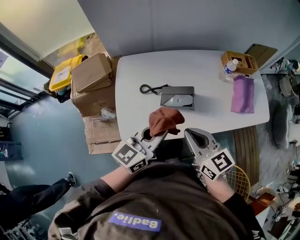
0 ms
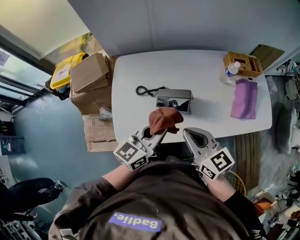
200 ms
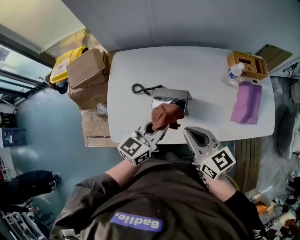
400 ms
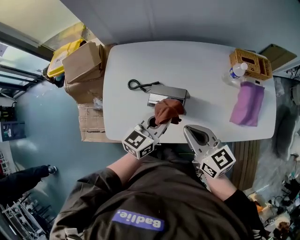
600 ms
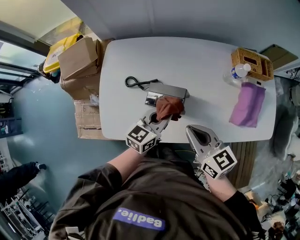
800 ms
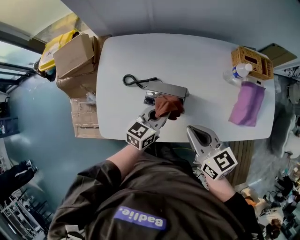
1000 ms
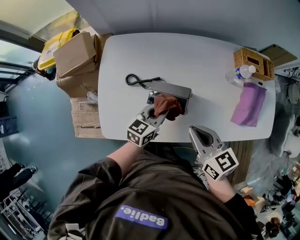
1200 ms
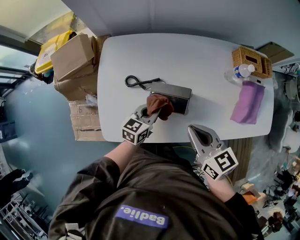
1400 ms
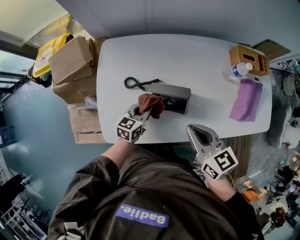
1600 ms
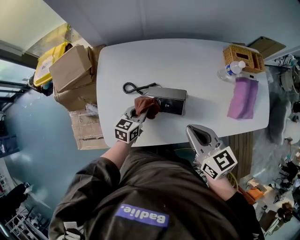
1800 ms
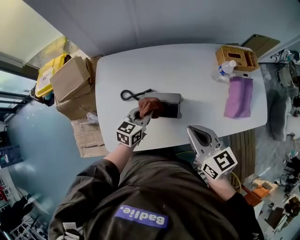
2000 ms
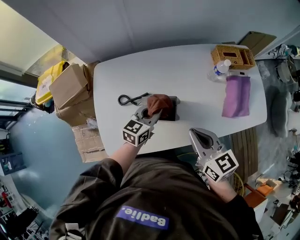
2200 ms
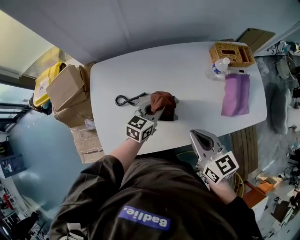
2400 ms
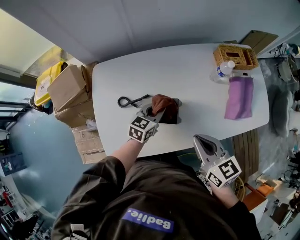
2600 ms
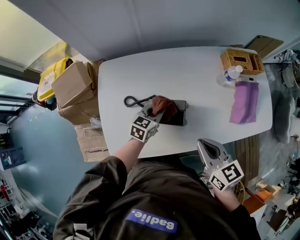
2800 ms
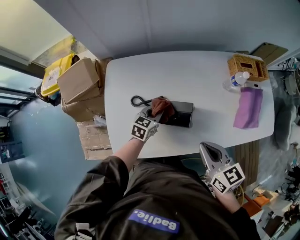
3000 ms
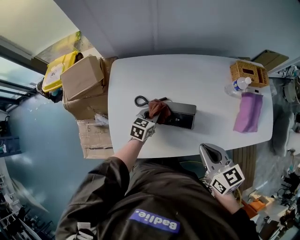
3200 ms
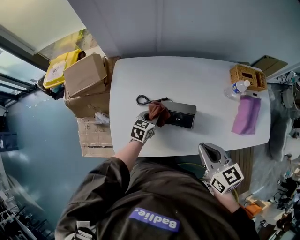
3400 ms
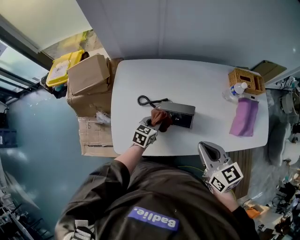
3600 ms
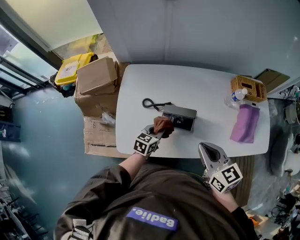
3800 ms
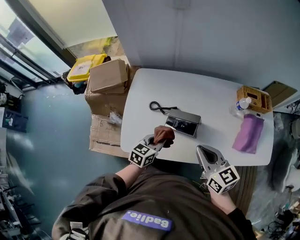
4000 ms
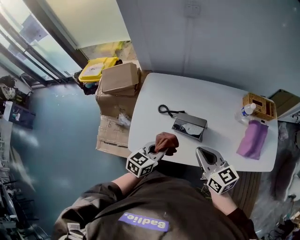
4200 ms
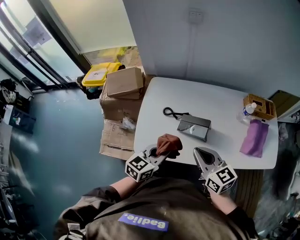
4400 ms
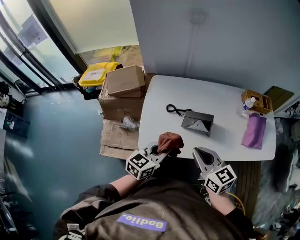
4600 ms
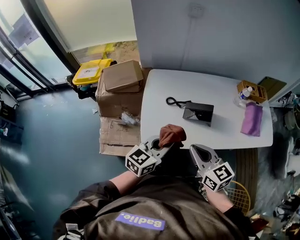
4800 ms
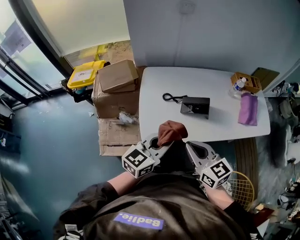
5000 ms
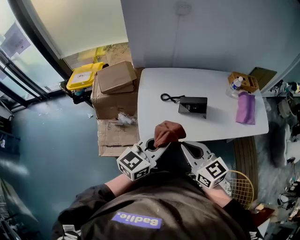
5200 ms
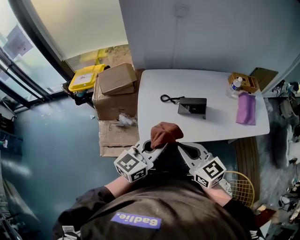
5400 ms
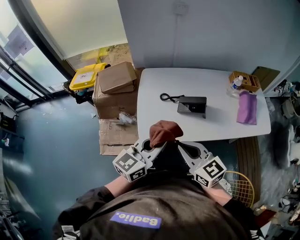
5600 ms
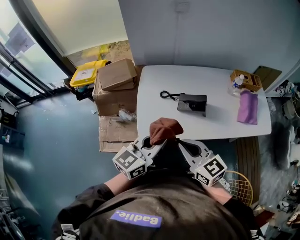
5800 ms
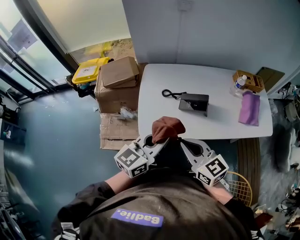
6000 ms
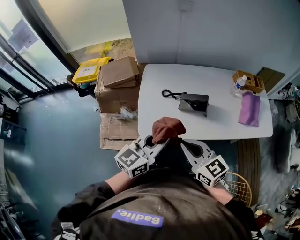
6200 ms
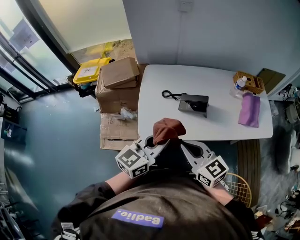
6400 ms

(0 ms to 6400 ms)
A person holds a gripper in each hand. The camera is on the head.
0 ms - 1600 ms: The left gripper is displaced downward and forward by about 30 cm, and swivels about 30 degrees, while the right gripper moves forward, downward and to the right, approximately 15 cm.
1600 ms - 3200 ms: The left gripper goes to the right and returns, about 10 cm each way.
3200 ms - 4800 ms: The right gripper heads to the left and backward, covering some 20 cm, while the left gripper travels upward and backward by approximately 35 cm, and changes its angle by some 30 degrees.
4800 ms - 6400 ms: The left gripper shifts approximately 5 cm upward.

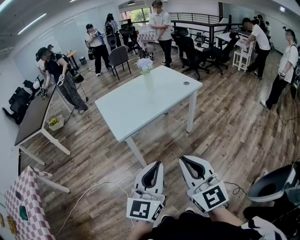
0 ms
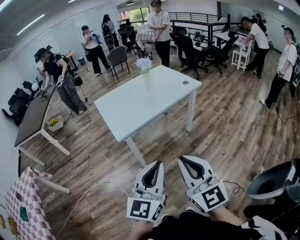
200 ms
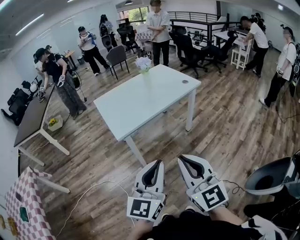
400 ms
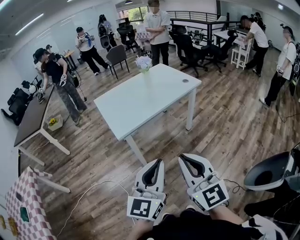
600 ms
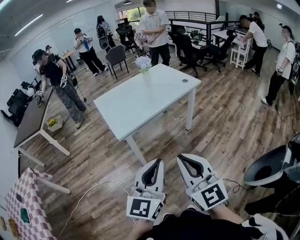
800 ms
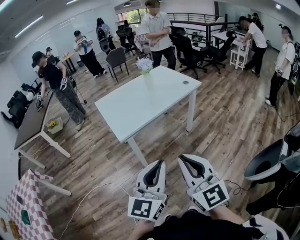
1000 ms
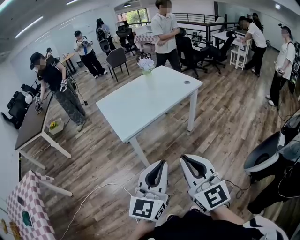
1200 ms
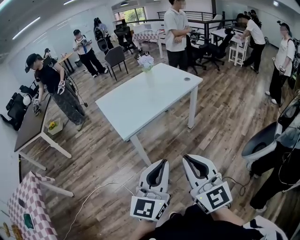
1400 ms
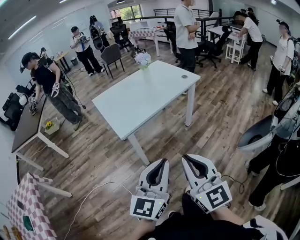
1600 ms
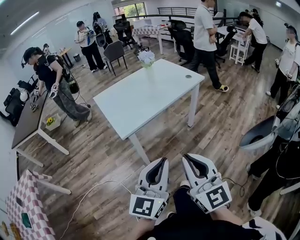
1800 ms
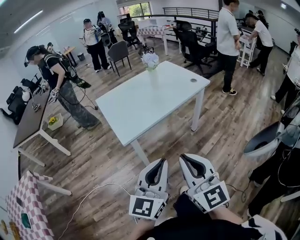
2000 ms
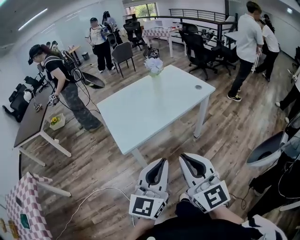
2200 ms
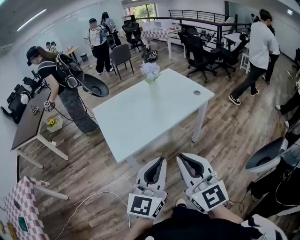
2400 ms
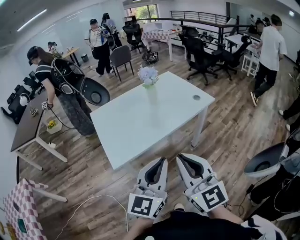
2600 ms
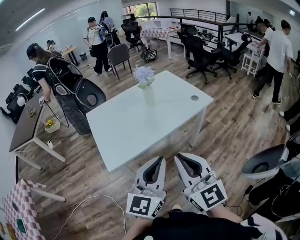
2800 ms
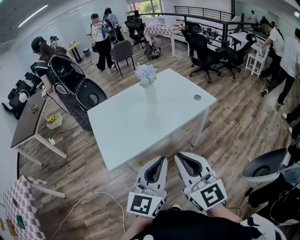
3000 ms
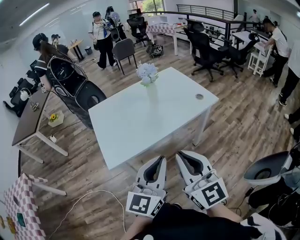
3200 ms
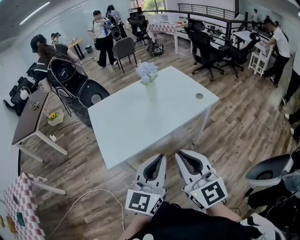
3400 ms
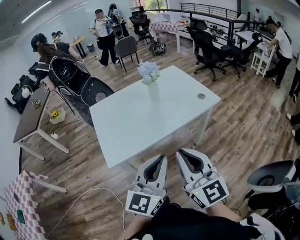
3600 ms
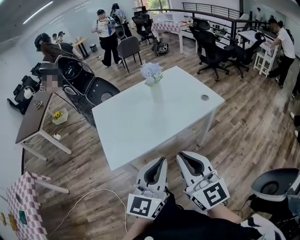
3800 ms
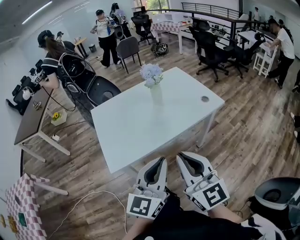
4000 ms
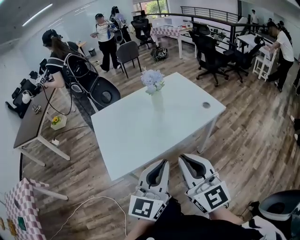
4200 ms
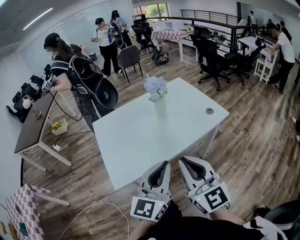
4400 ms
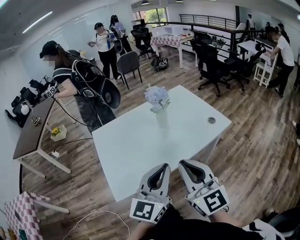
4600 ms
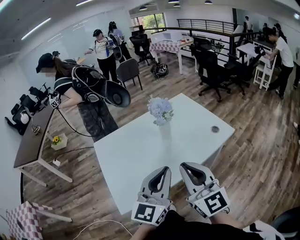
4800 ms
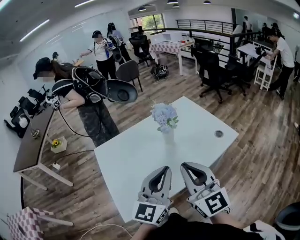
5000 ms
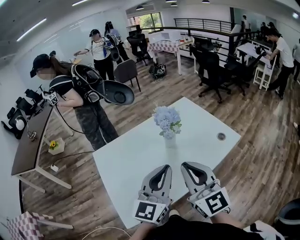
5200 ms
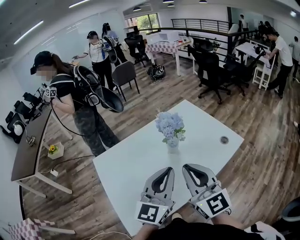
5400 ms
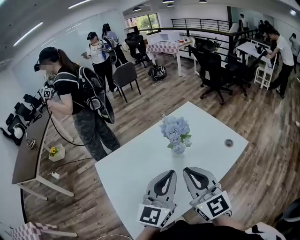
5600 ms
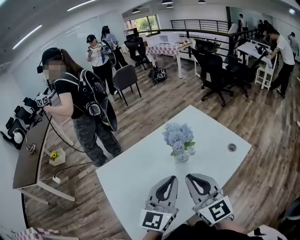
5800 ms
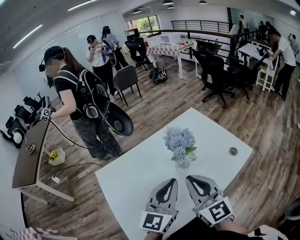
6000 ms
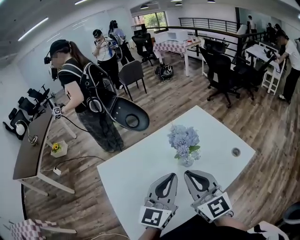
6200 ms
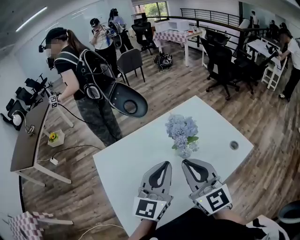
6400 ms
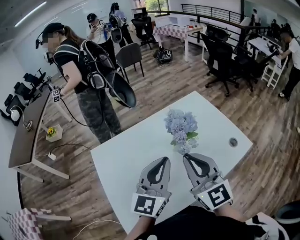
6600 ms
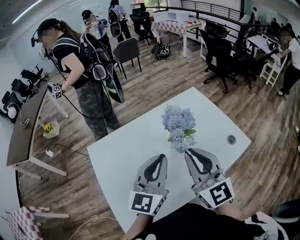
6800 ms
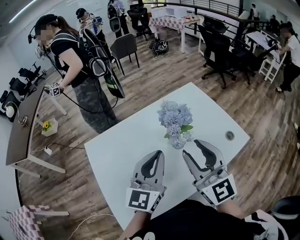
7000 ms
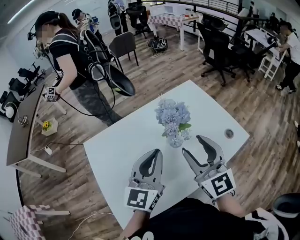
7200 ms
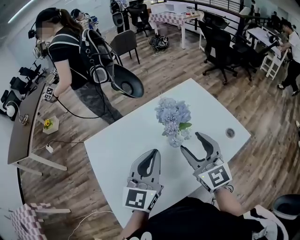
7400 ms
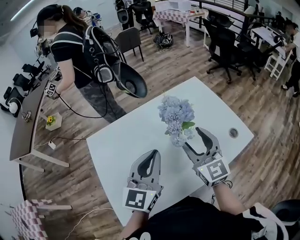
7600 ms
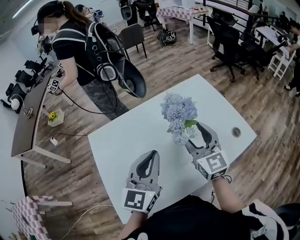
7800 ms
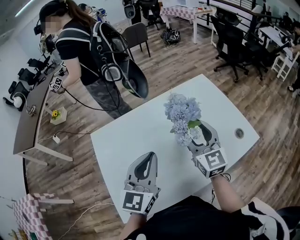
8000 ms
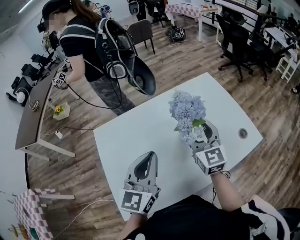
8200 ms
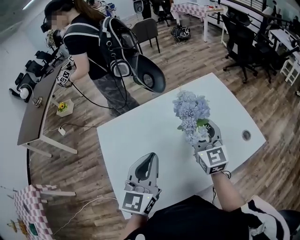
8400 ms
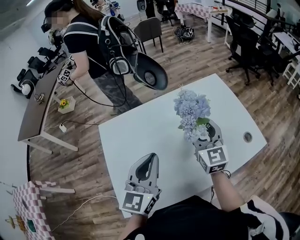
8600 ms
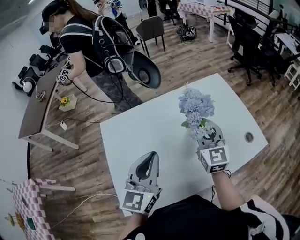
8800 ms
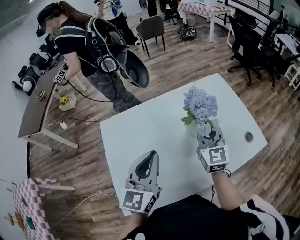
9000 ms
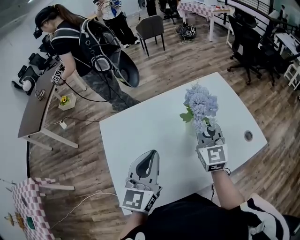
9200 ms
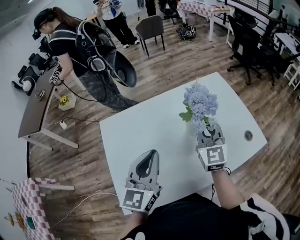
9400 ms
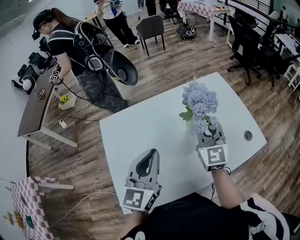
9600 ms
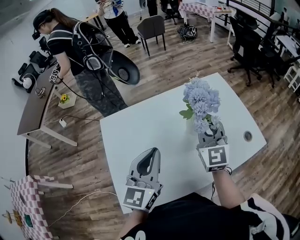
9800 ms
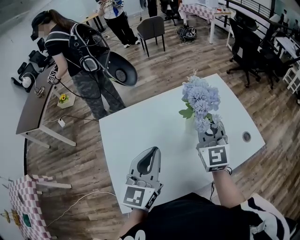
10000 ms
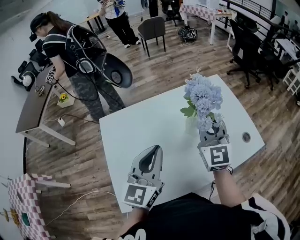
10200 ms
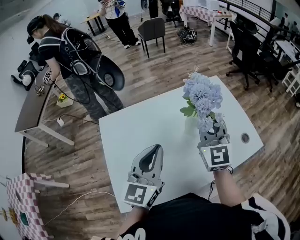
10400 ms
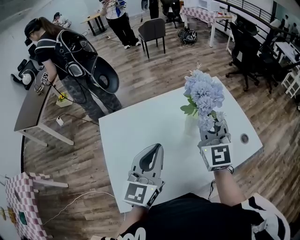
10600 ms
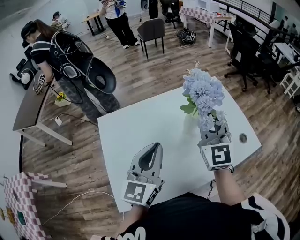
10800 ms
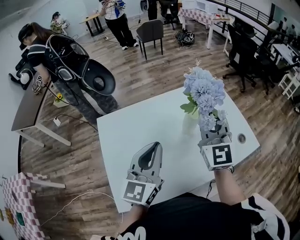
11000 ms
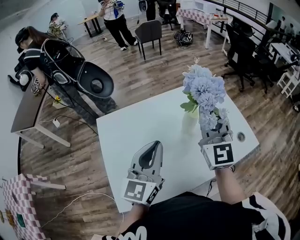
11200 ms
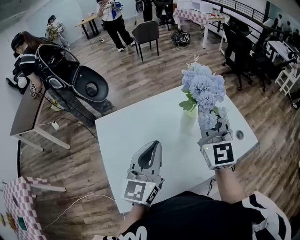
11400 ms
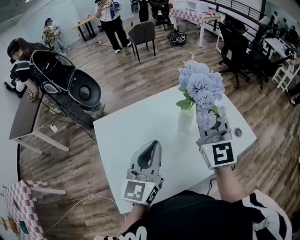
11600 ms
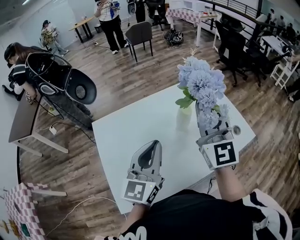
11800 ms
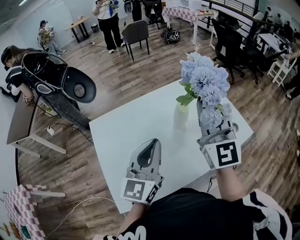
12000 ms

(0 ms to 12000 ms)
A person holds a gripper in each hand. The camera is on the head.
0 ms - 1600 ms: The grippers move only a little.
1600 ms - 3000 ms: Both grippers move forward, approximately 30 cm.
3000 ms - 4400 ms: Both grippers travel together forward, about 10 cm.
4400 ms - 6000 ms: The grippers both shift forward by some 25 cm.
6000 ms - 7600 ms: The right gripper moves forward, approximately 10 cm, and opens.
7600 ms - 9000 ms: The right gripper moves forward, approximately 5 cm, and closes up; the left gripper moves to the left, about 5 cm.
9000 ms - 10400 ms: The right gripper travels upward by approximately 5 cm.
10400 ms - 12000 ms: The right gripper moves upward, about 10 cm.

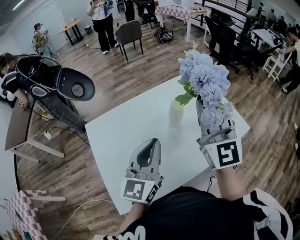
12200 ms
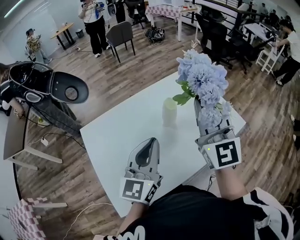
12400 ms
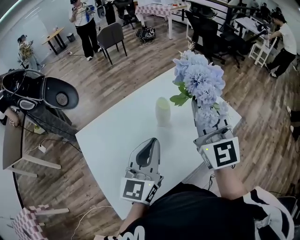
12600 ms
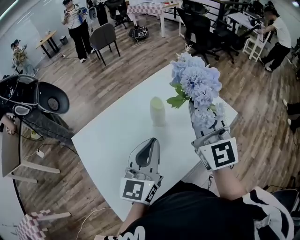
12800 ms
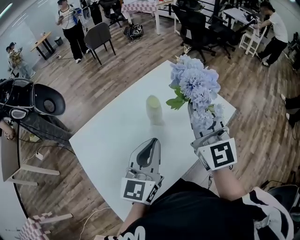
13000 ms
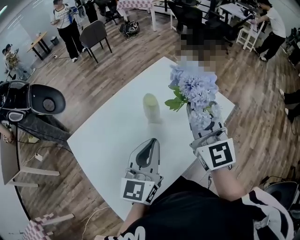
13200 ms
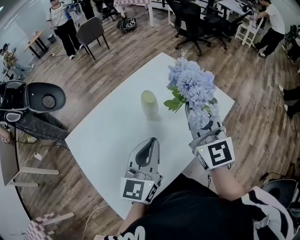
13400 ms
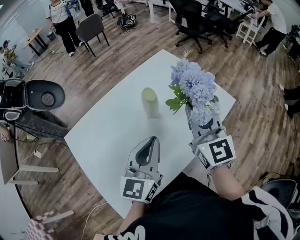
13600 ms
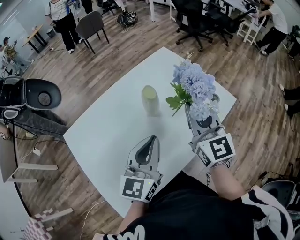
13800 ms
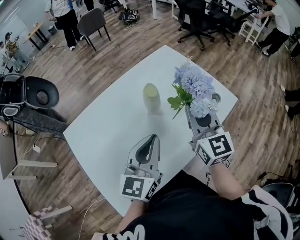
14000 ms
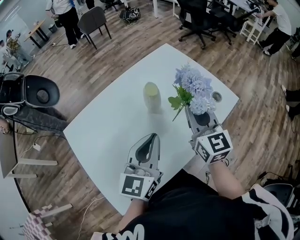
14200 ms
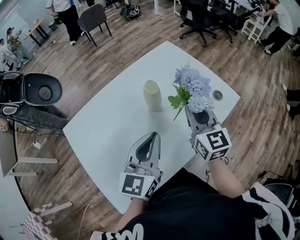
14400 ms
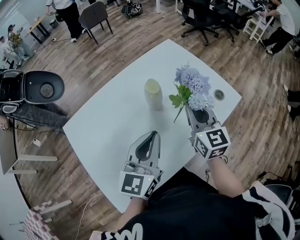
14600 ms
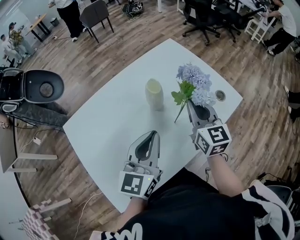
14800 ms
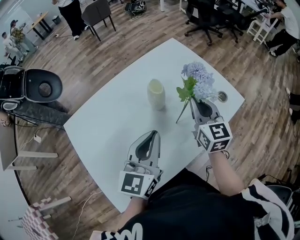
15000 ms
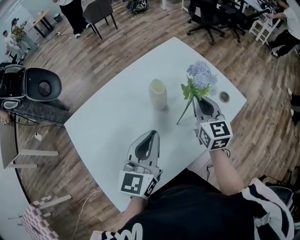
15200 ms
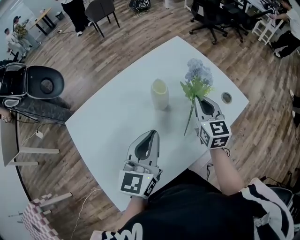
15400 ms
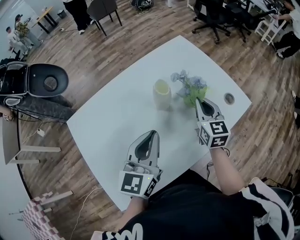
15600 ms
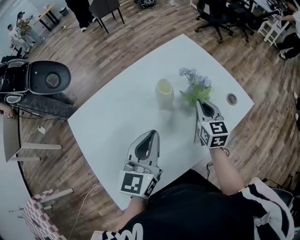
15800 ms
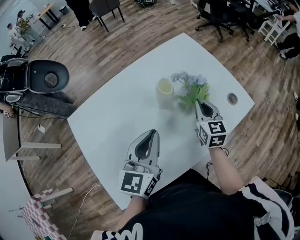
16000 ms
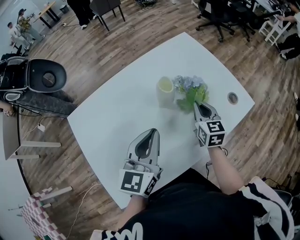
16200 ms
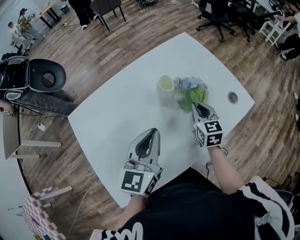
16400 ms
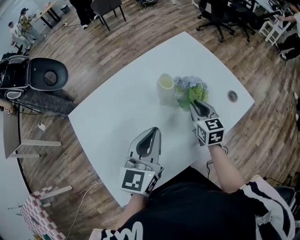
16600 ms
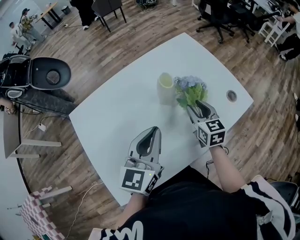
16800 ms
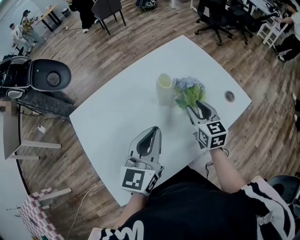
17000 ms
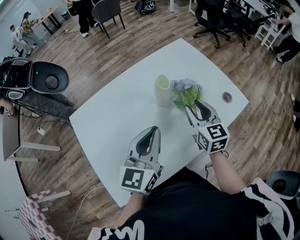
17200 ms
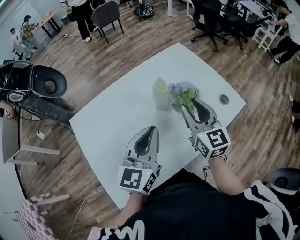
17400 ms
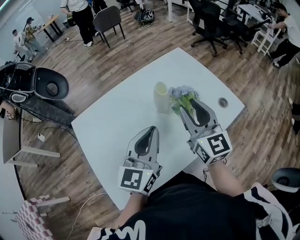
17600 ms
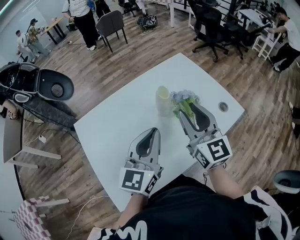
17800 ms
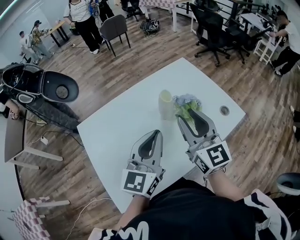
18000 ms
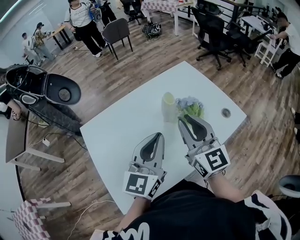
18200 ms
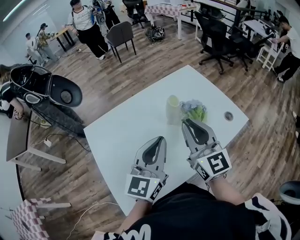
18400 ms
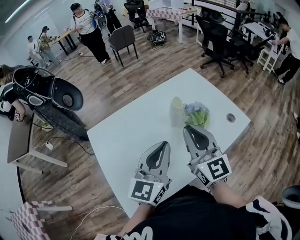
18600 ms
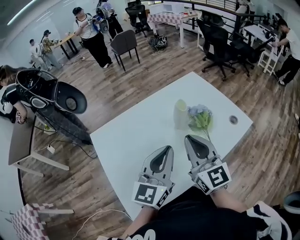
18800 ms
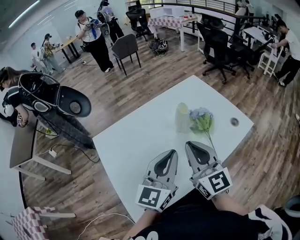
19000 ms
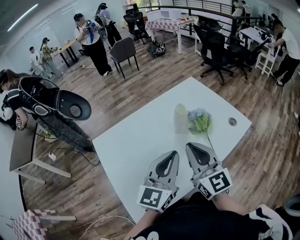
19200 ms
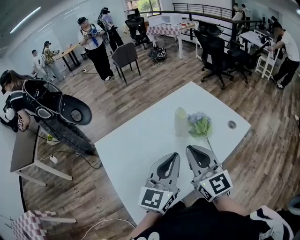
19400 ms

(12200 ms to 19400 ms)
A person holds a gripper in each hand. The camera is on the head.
12200 ms - 13600 ms: The right gripper goes about 10 cm downward and to the right; the left gripper goes about 5 cm to the right.
13600 ms - 15000 ms: The right gripper heads downward and forward, covering approximately 15 cm.
15000 ms - 16600 ms: The right gripper travels downward by about 10 cm.
16600 ms - 18000 ms: The right gripper is displaced upward by approximately 20 cm, swivels roughly 30 degrees, and opens; the left gripper is displaced upward by some 5 cm.
18000 ms - 19400 ms: The left gripper shifts some 5 cm backward, while the right gripper goes roughly 10 cm backward and to the left, and closes its fingers.
